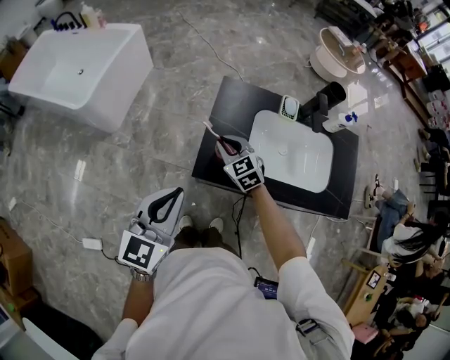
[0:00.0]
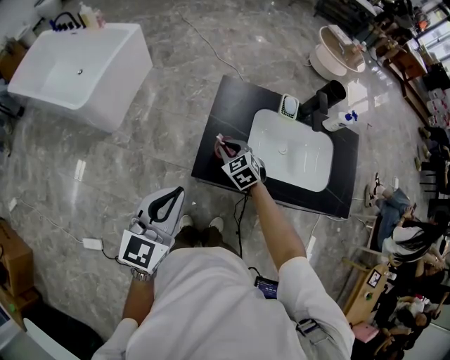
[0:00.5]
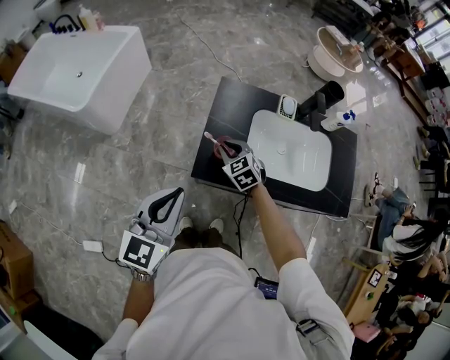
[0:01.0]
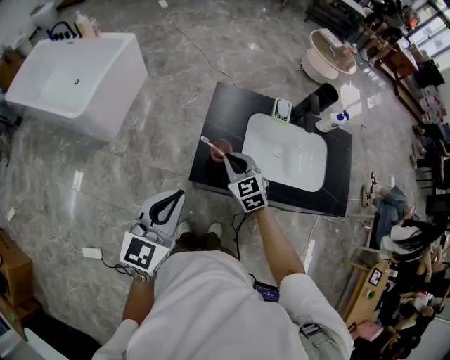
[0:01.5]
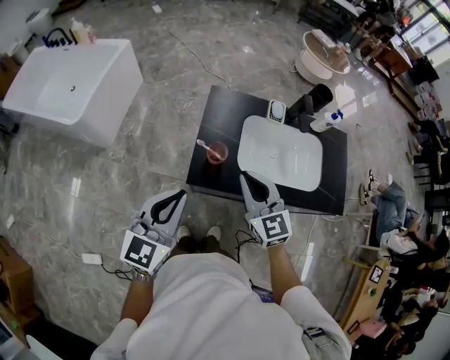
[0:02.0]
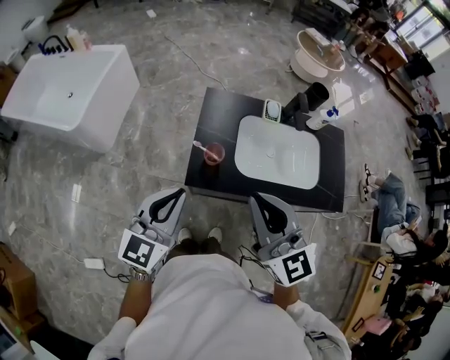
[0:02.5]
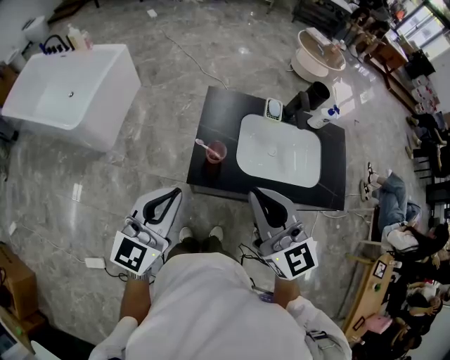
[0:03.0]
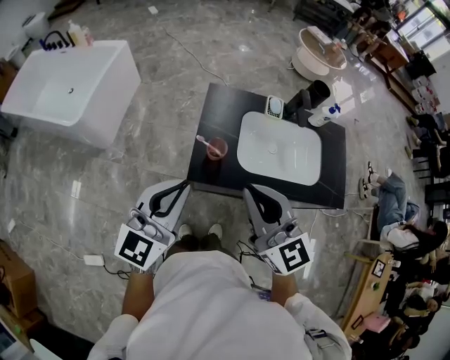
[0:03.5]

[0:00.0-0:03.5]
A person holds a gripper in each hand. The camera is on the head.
0:00.0 to 0:02.0: The right gripper is displaced upward, backward and to the right by roughly 20 cm, and changes its angle by some 20 degrees.
0:02.0 to 0:03.5: The right gripper is displaced upward and backward by roughly 15 cm. The left gripper travels upward by about 5 cm.

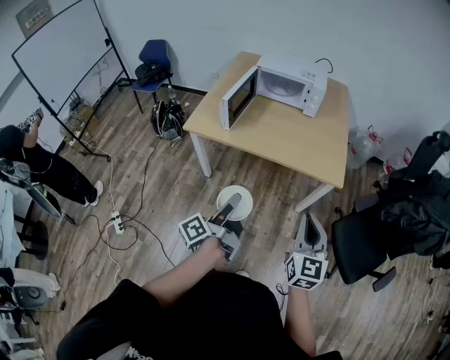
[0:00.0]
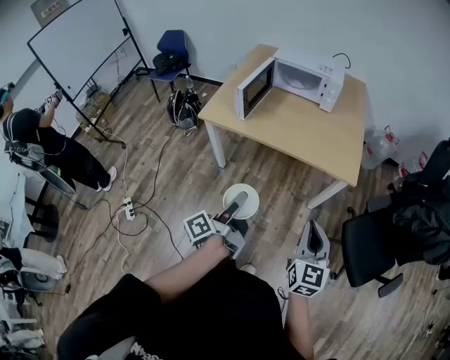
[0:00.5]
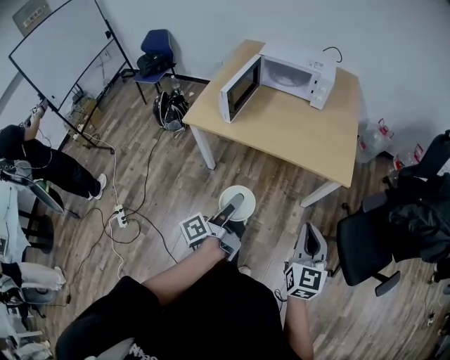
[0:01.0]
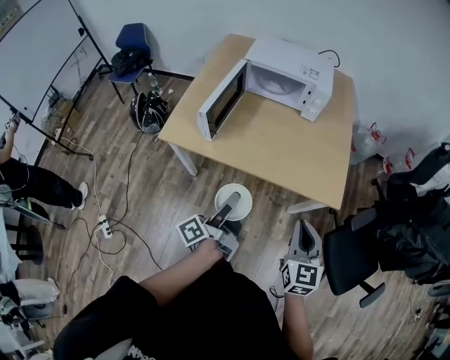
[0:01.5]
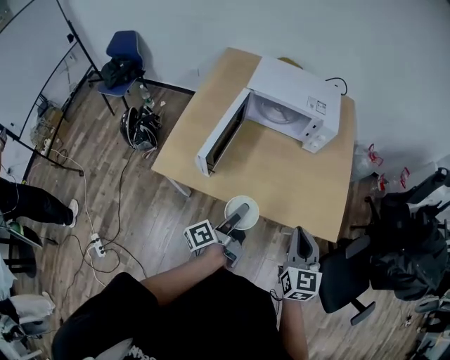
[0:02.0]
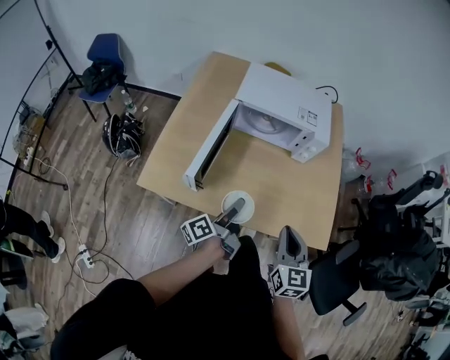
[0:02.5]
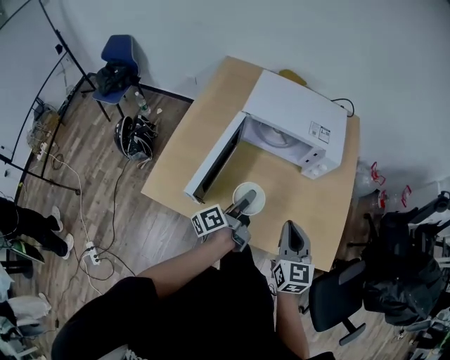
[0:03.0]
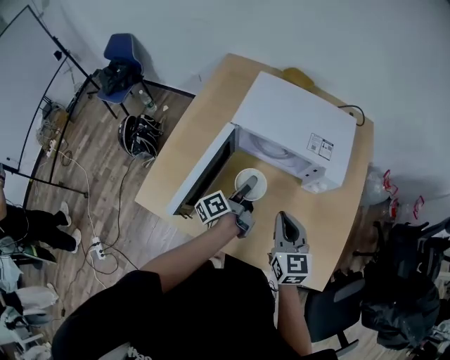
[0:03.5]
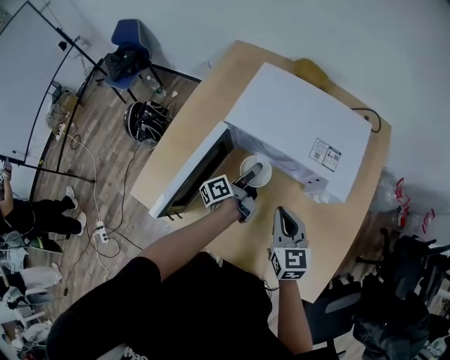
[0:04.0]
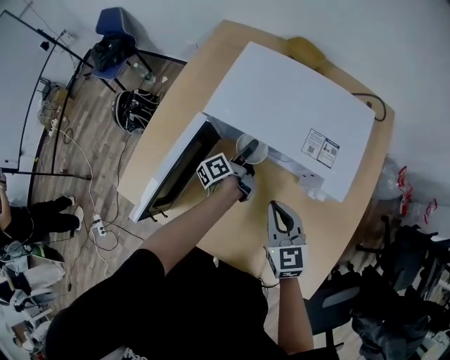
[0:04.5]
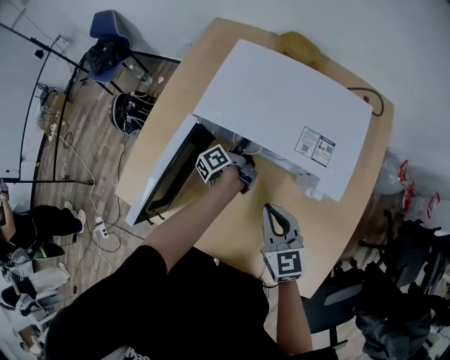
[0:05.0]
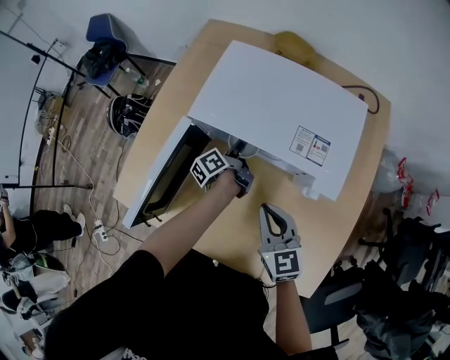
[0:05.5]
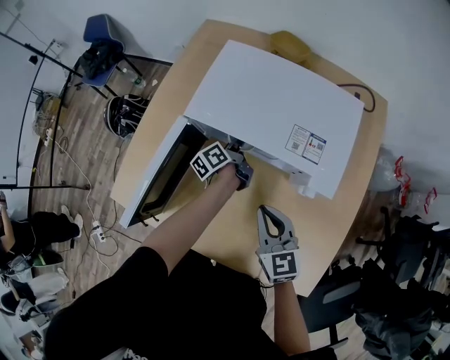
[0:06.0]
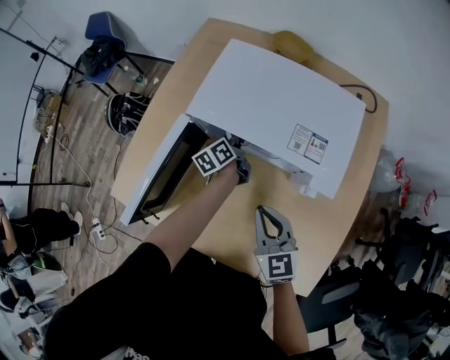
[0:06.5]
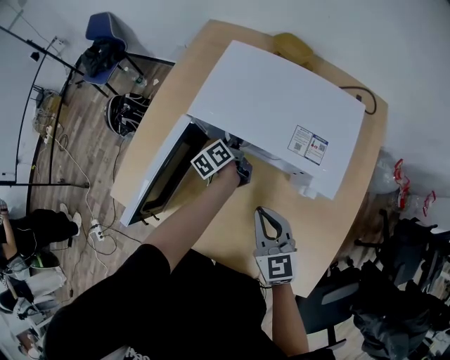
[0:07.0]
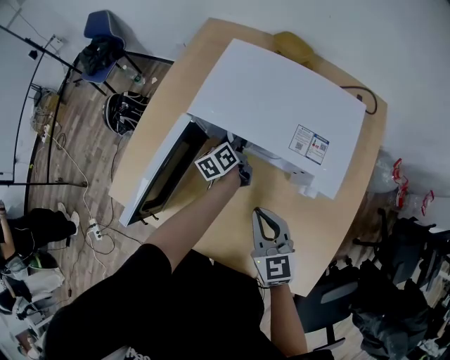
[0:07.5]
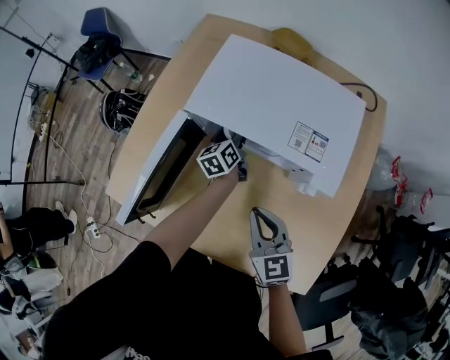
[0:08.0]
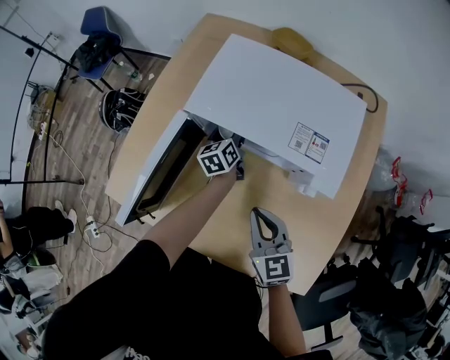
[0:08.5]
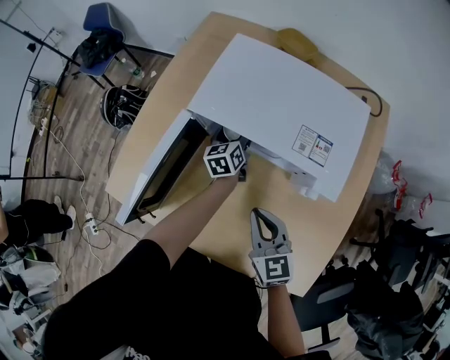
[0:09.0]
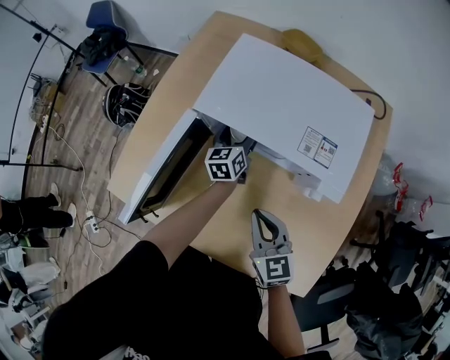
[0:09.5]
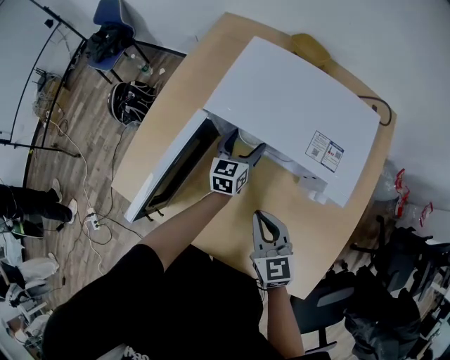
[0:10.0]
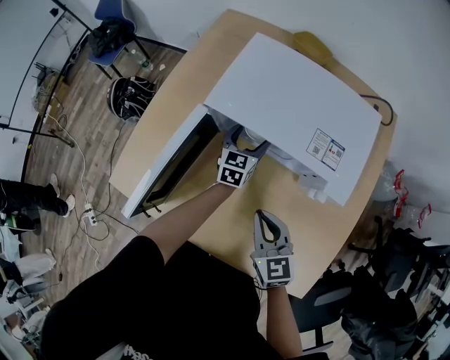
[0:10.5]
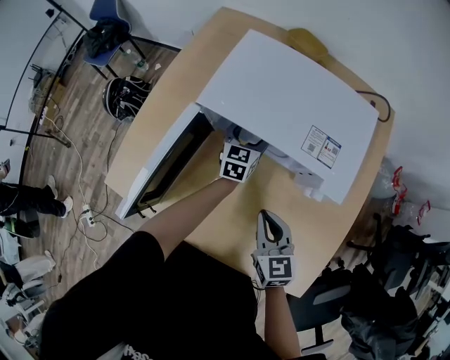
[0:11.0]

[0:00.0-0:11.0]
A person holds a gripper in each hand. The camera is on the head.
0:00.0 to 0:02.0: Both grippers move forward, roughly 30 cm.
0:02.0 to 0:03.5: Both grippers travel together forward, approximately 30 cm.
0:03.5 to 0:05.5: The right gripper goes approximately 10 cm forward and downward. The left gripper is displaced forward and downward by some 20 cm.
0:05.5 to 0:07.5: The left gripper rotates about 30 degrees.
0:07.5 to 0:09.0: The left gripper turns by roughly 20 degrees, and opens up.
0:09.0 to 0:11.0: The left gripper moves roughly 5 cm, and turns by some 30 degrees.

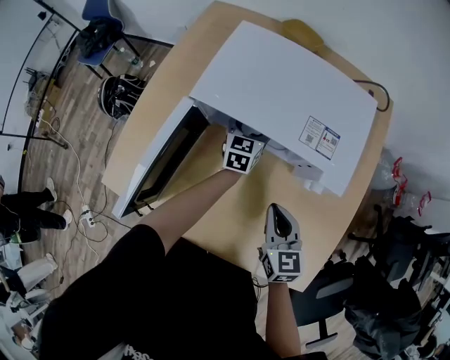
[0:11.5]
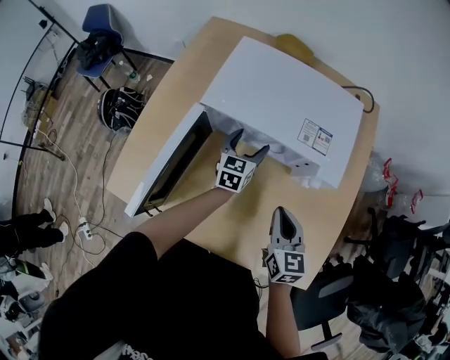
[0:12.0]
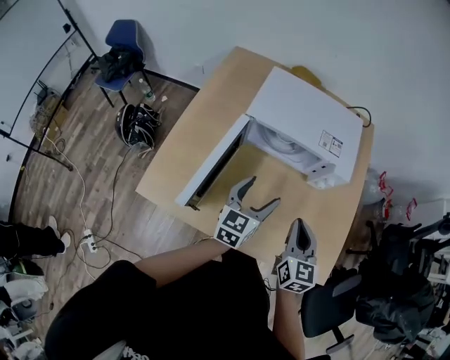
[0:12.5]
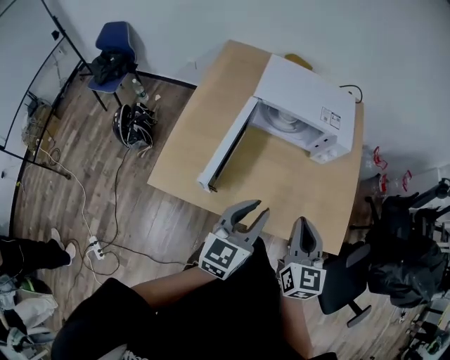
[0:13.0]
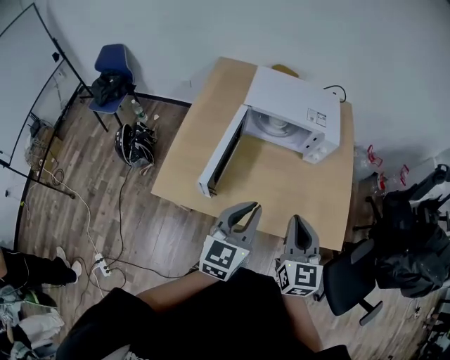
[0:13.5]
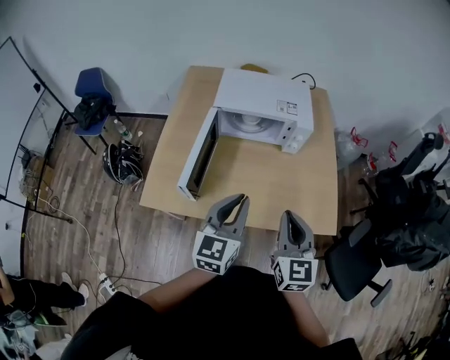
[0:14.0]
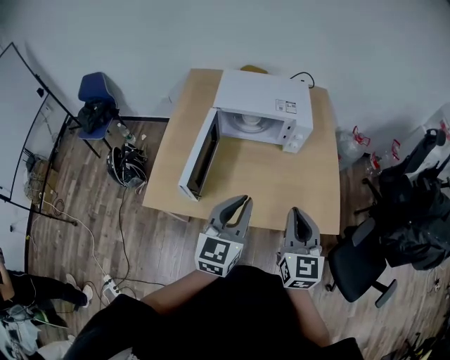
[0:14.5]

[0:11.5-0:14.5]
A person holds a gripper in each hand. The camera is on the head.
0:11.5 to 0:13.0: The right gripper travels backward, upward and to the left by approximately 30 cm, and changes its angle by some 20 degrees, while the left gripper shifts some 50 cm backward and upward, rotates about 20 degrees, and closes up.
0:13.0 to 0:14.5: The right gripper heads to the right, covering about 5 cm. The left gripper moves approximately 5 cm.

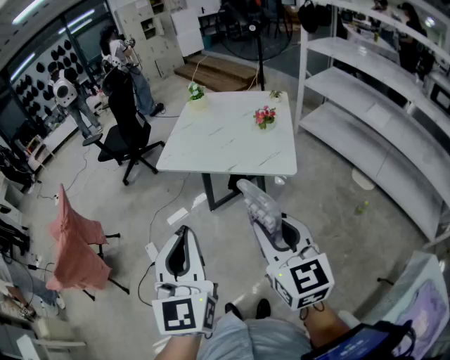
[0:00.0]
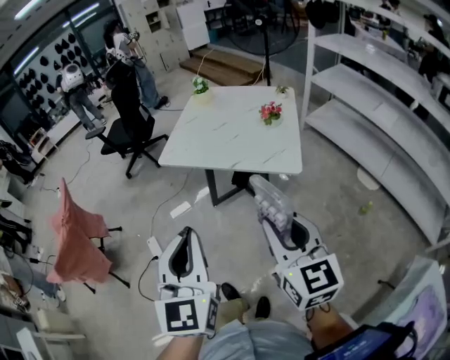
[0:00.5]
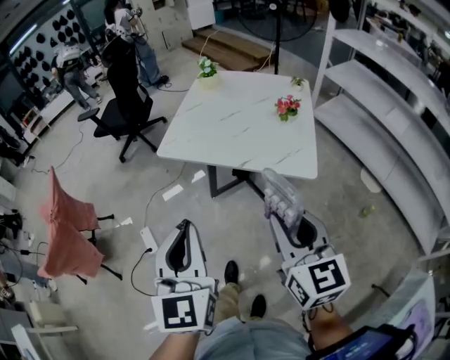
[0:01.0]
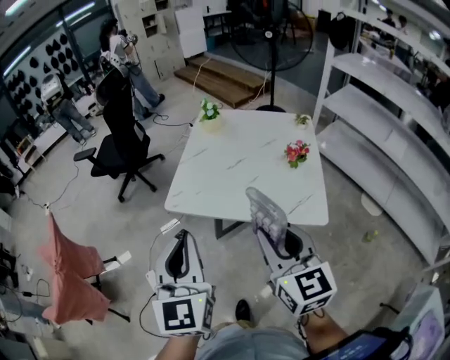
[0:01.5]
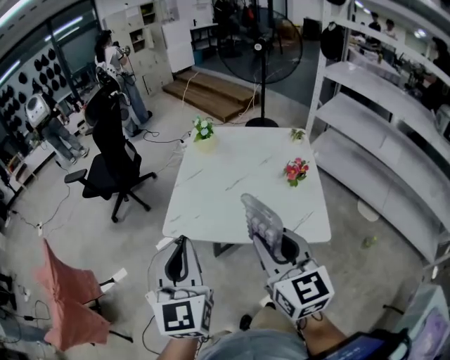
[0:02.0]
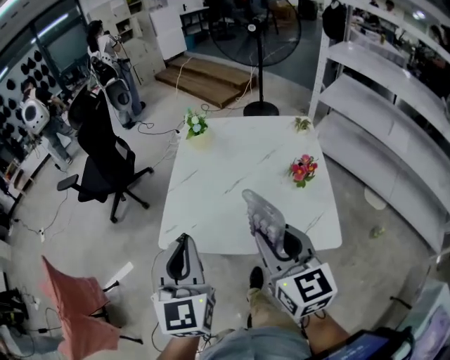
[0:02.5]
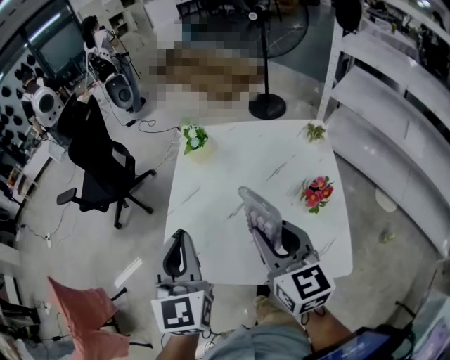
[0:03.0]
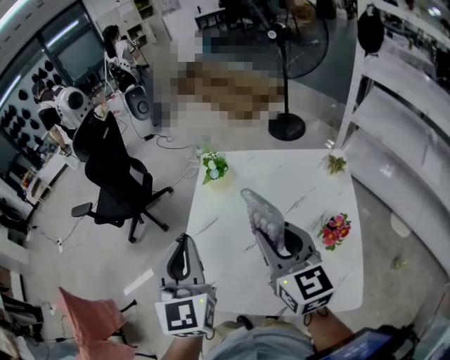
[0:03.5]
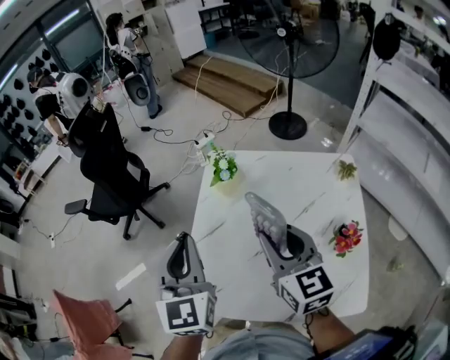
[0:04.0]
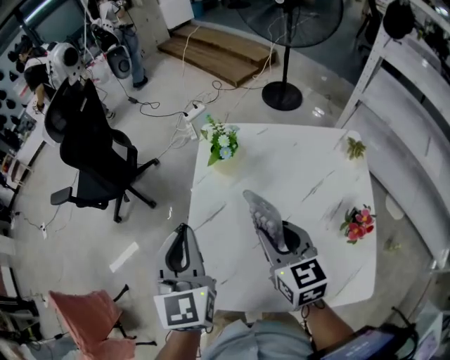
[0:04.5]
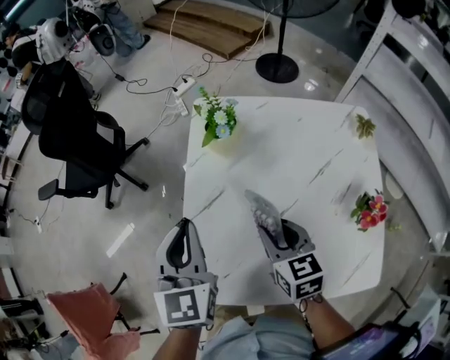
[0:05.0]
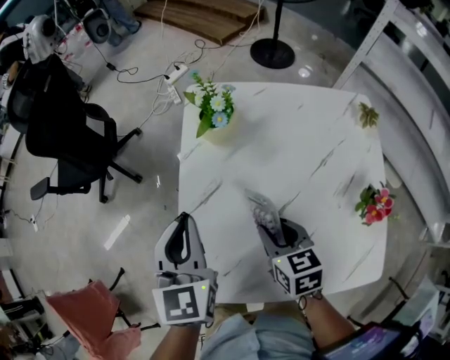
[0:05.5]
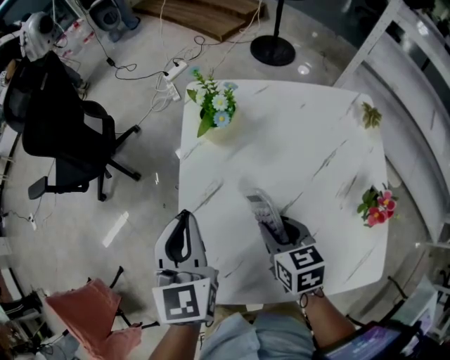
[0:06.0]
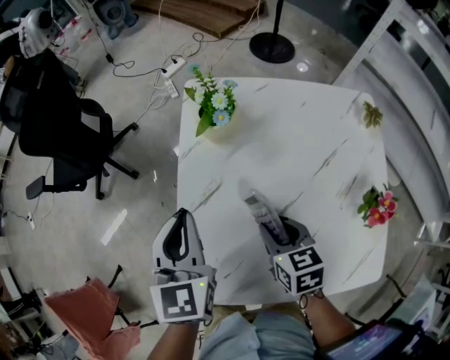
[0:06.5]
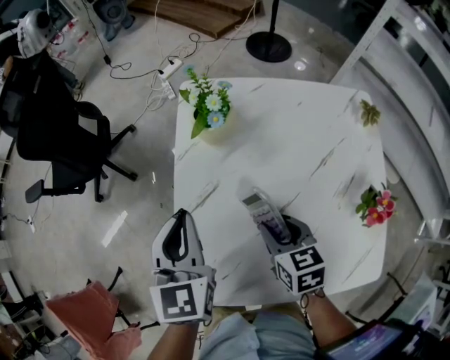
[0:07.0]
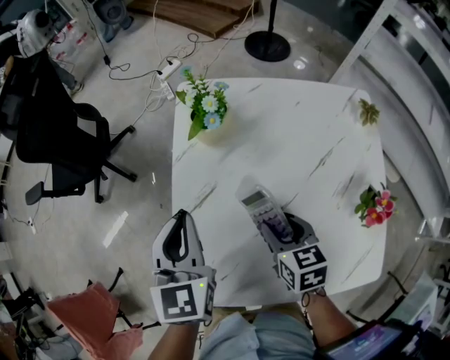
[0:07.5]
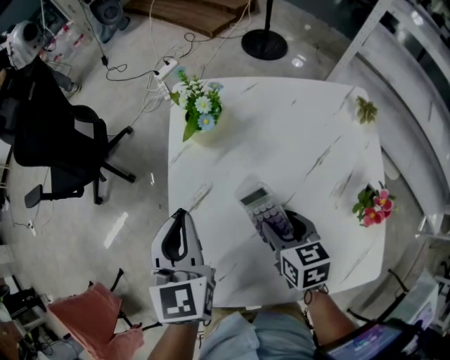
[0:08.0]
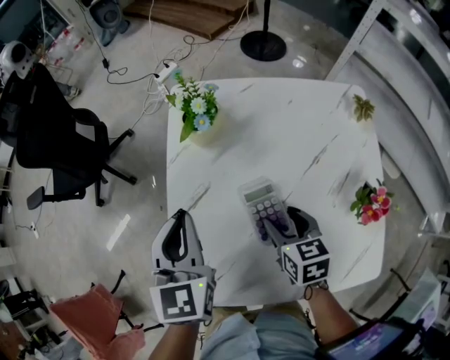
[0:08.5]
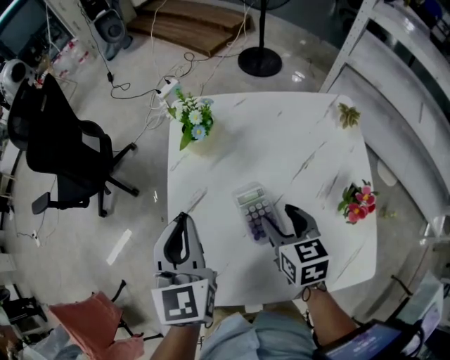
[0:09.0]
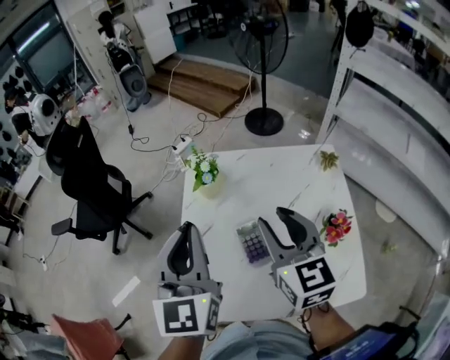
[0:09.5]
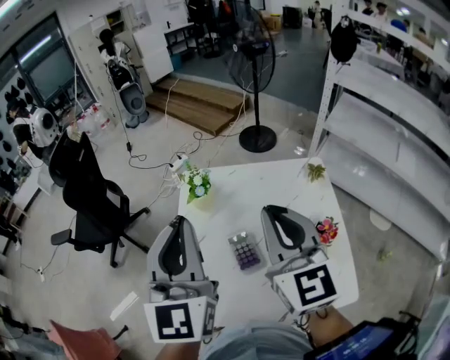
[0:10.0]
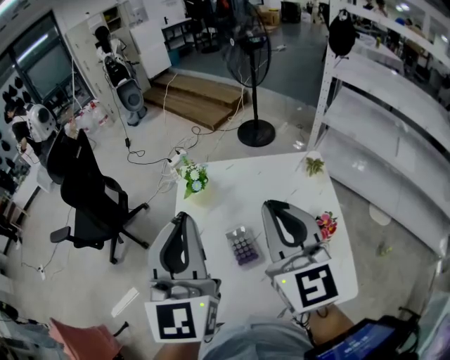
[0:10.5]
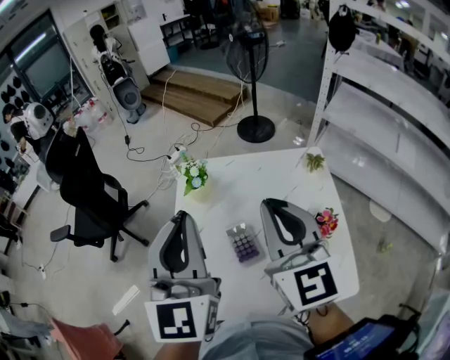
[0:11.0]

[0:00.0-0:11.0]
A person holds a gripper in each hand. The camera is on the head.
0:00.0 to 0:02.0: Both grippers move forward, approximately 30 cm.
0:02.0 to 0:03.5: The grippers both shift forward by roughly 30 cm.
0:03.5 to 0:05.5: The right gripper goes roughly 25 cm downward, and tilts its fingers roughly 40 degrees downward. Meanwhile the left gripper is displaced downward and forward by roughly 20 cm, and rotates about 20 degrees.
0:05.5 to 0:07.5: There are only small adjustments of the grippers.
0:07.5 to 0:09.0: The right gripper changes place by roughly 5 cm; the left gripper moves roughly 5 cm.
0:09.0 to 0:11.0: Both grippers move upward, about 25 cm. The right gripper tilts its fingers some 40 degrees upward, and closes up; the left gripper swivels roughly 30 degrees.
